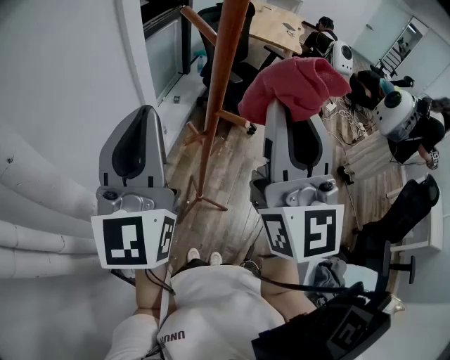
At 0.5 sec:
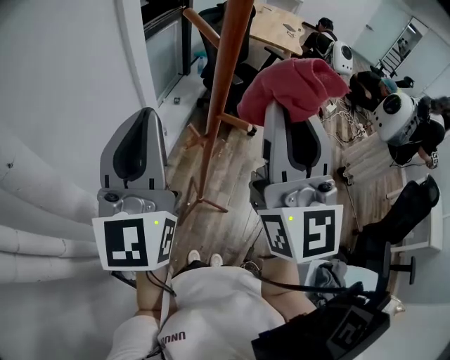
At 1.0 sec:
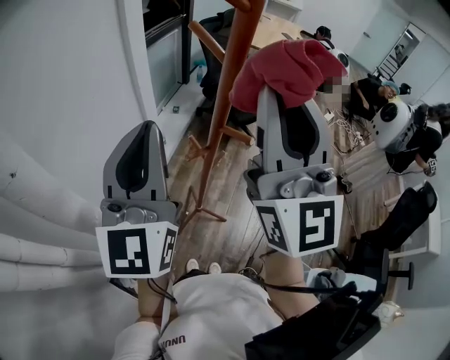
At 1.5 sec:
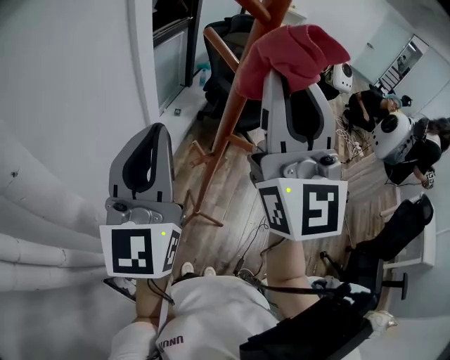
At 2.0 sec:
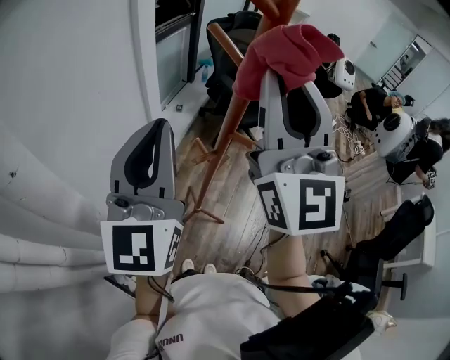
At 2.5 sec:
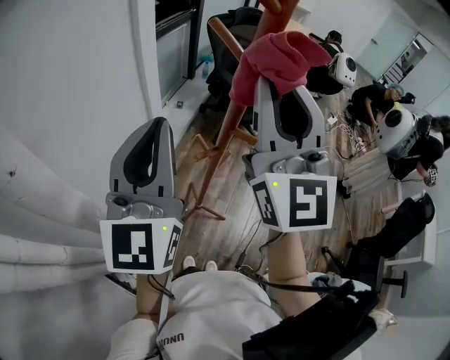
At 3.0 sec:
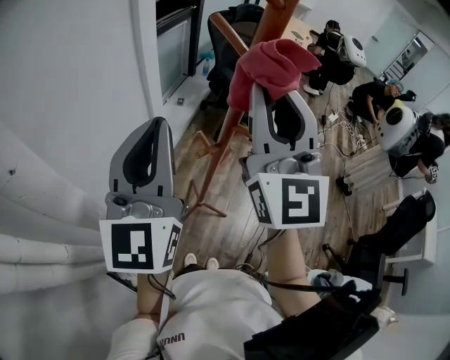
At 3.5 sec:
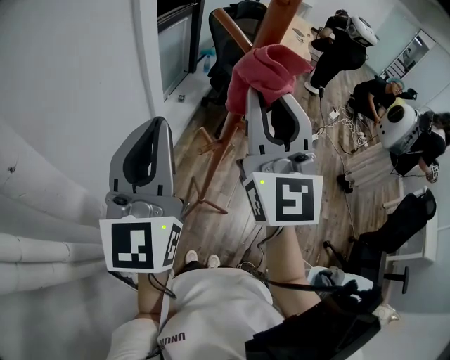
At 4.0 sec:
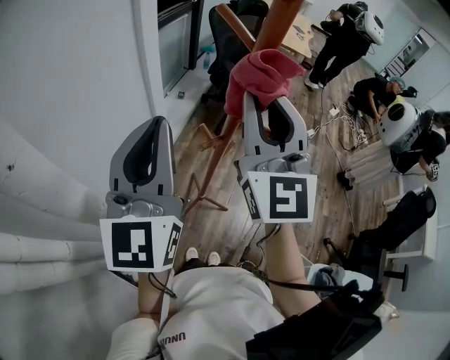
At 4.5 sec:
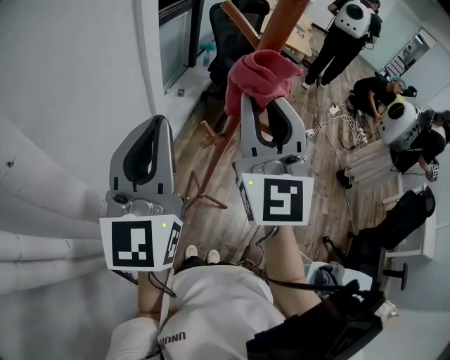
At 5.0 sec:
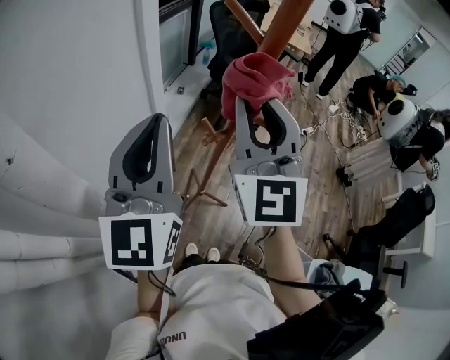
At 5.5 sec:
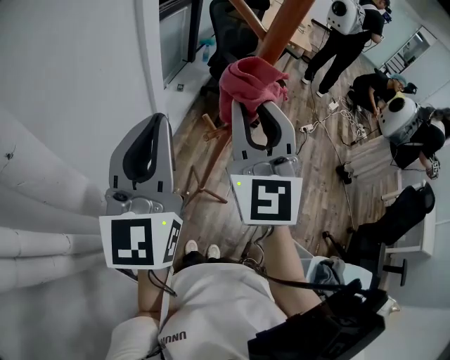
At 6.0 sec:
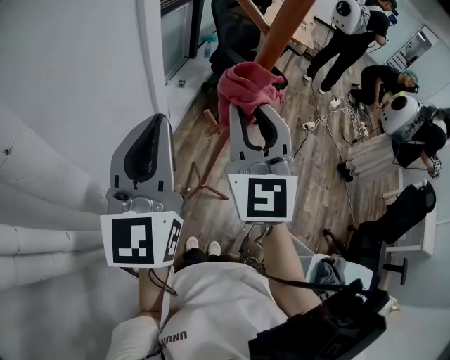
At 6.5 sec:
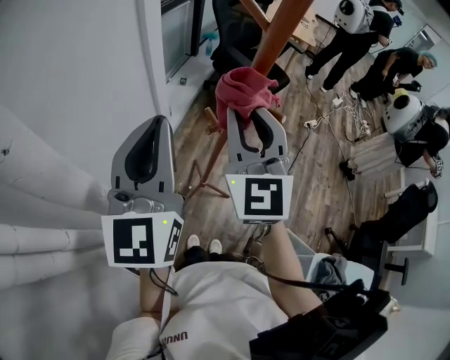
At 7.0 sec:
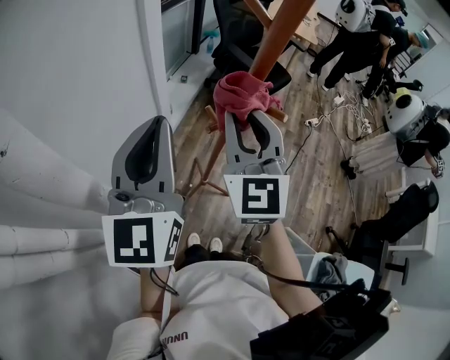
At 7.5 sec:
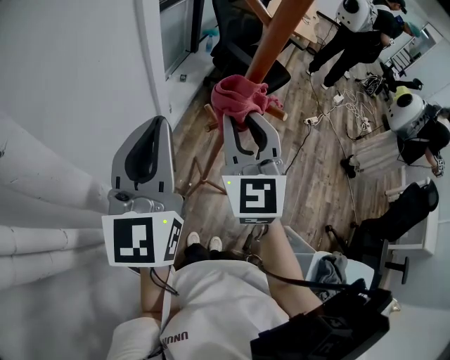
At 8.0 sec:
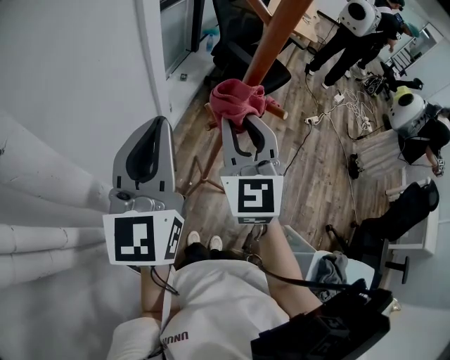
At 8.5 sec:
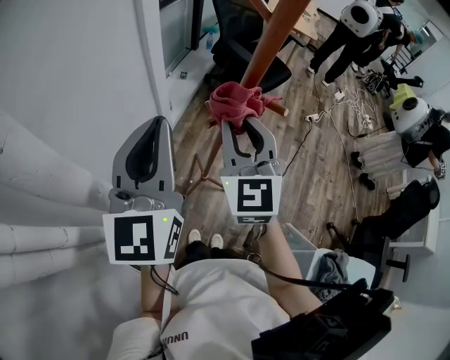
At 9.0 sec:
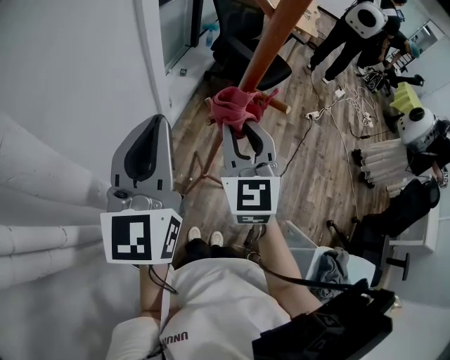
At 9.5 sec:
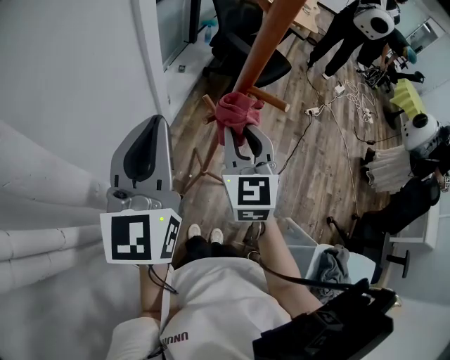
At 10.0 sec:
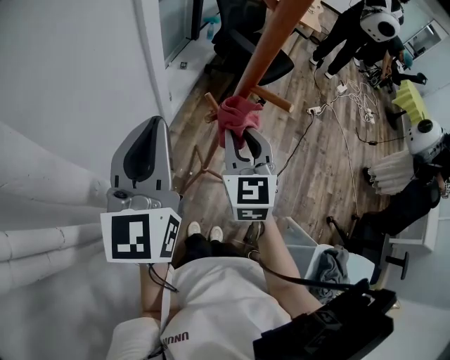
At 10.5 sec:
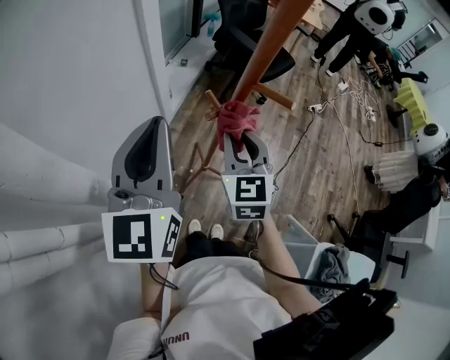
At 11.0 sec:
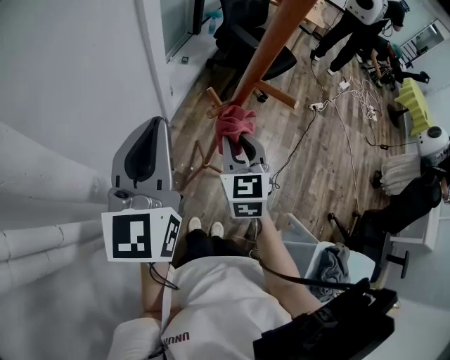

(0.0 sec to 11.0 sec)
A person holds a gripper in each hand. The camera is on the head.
0.0 sec - 2.0 sec: The right gripper heads forward, covering about 5 cm.
2.0 sec - 3.5 sec: The right gripper goes approximately 5 cm downward.
3.5 sec - 5.5 sec: The right gripper moves roughly 5 cm.
5.5 sec - 7.5 sec: The right gripper goes some 10 cm downward.
7.5 sec - 9.0 sec: The right gripper shifts some 5 cm downward.
9.0 sec - 11.0 sec: The right gripper moves downward, some 10 cm.

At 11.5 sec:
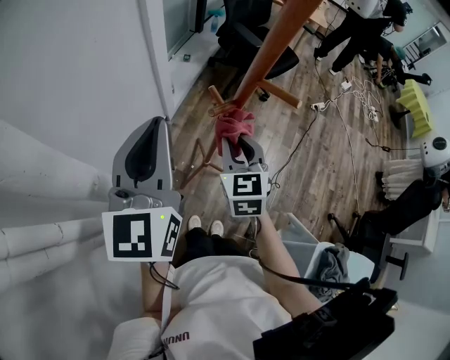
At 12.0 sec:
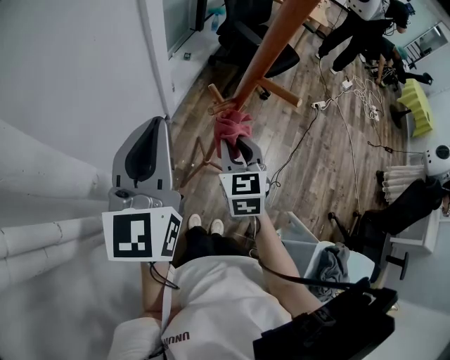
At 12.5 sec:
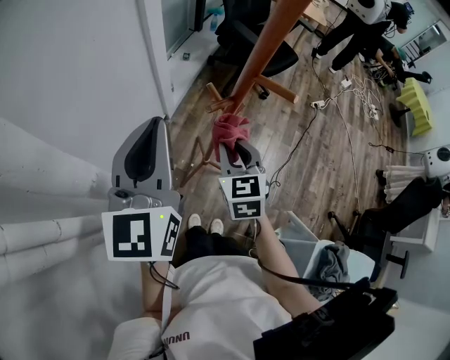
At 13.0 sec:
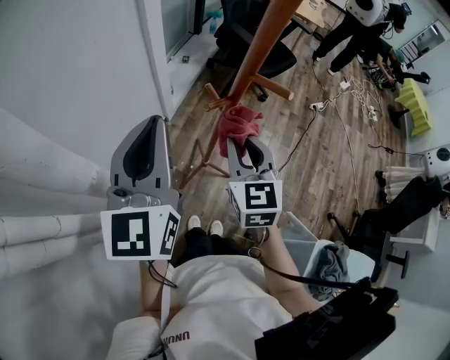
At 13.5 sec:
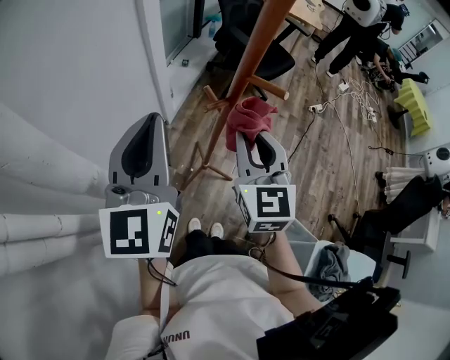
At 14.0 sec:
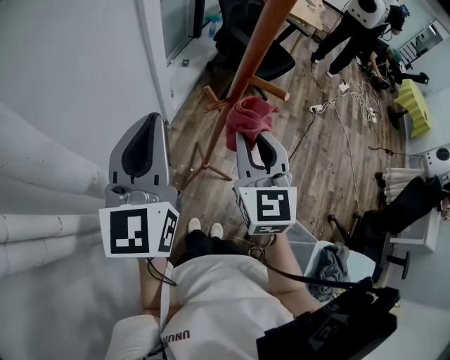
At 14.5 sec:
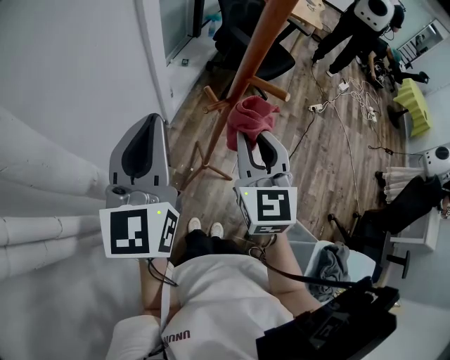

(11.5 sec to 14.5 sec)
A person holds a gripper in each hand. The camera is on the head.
11.5 sec - 13.0 sec: The right gripper changes place by some 5 cm.
13.0 sec - 14.5 sec: The right gripper moves upward, approximately 5 cm.

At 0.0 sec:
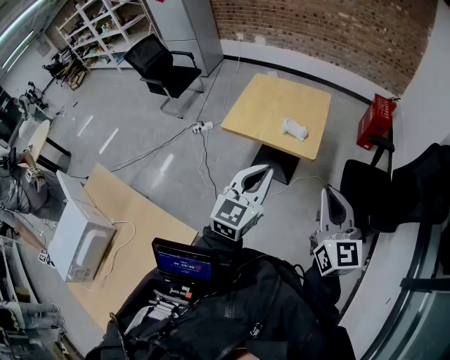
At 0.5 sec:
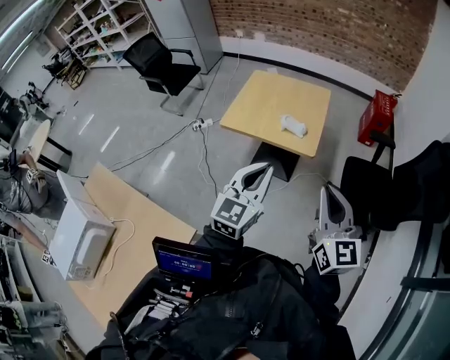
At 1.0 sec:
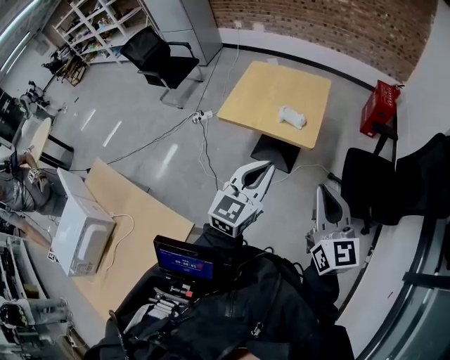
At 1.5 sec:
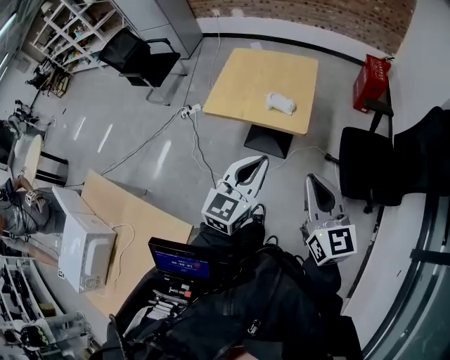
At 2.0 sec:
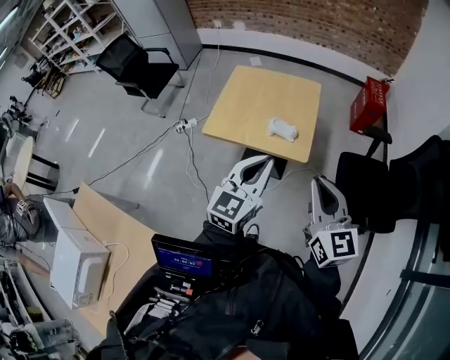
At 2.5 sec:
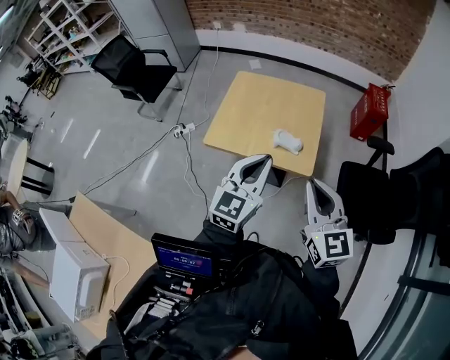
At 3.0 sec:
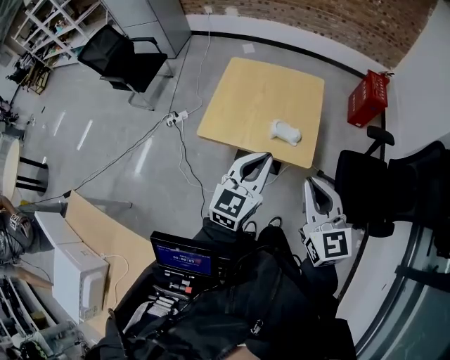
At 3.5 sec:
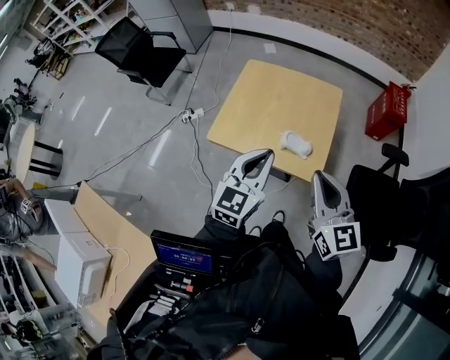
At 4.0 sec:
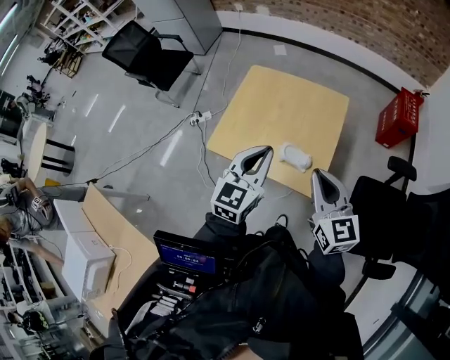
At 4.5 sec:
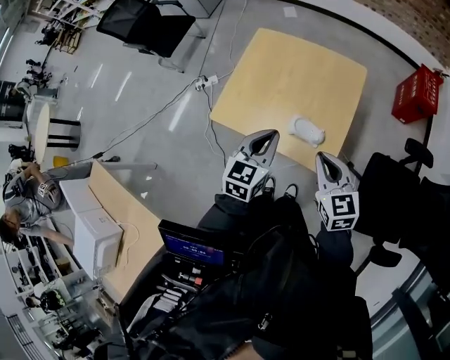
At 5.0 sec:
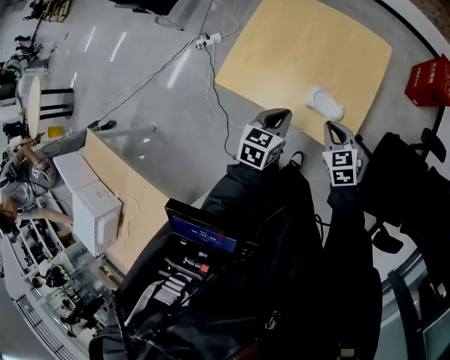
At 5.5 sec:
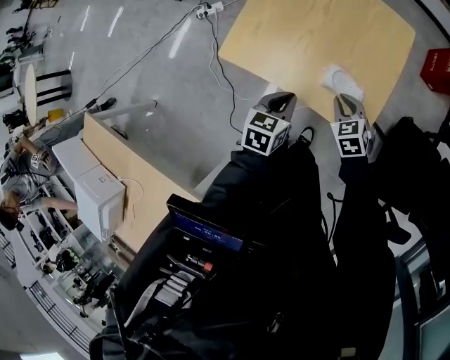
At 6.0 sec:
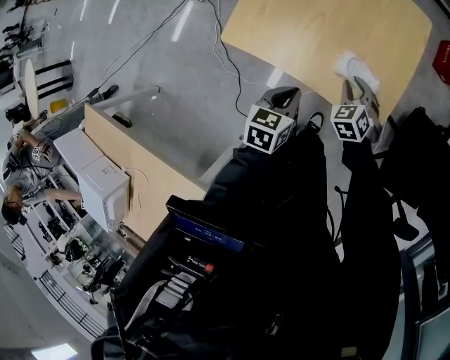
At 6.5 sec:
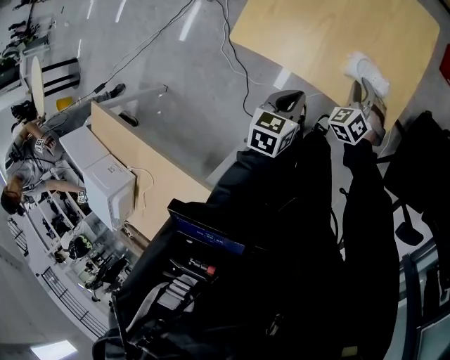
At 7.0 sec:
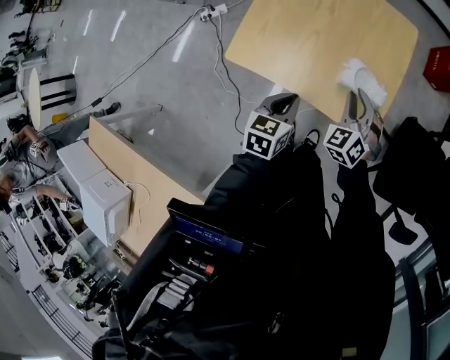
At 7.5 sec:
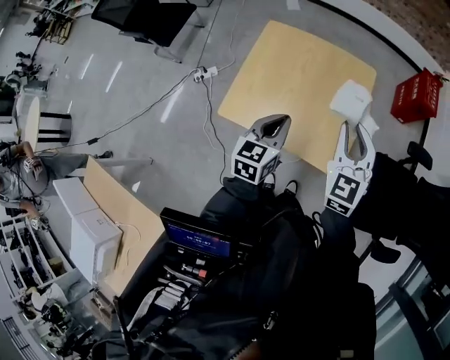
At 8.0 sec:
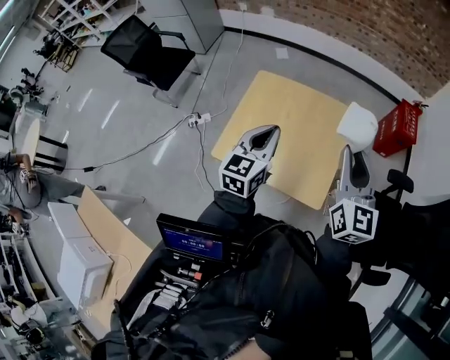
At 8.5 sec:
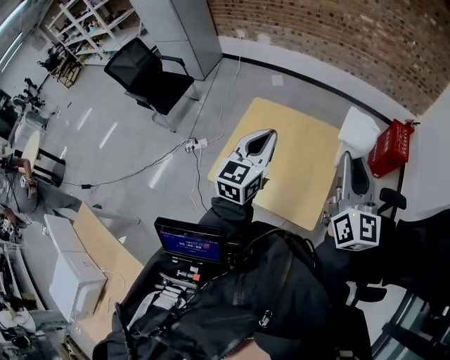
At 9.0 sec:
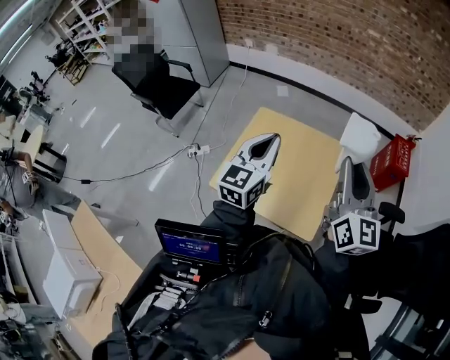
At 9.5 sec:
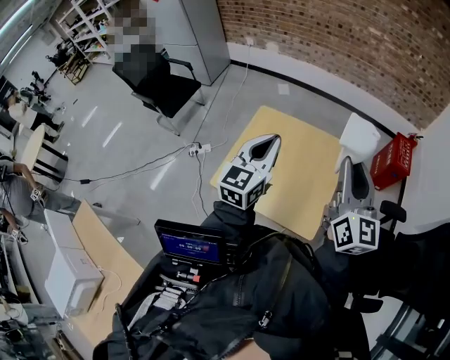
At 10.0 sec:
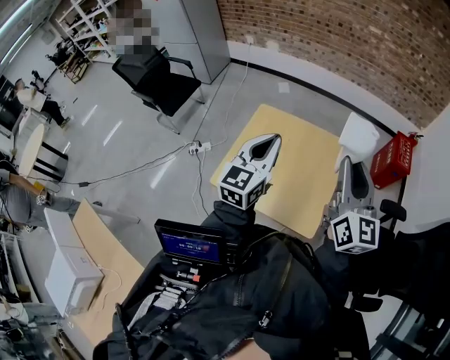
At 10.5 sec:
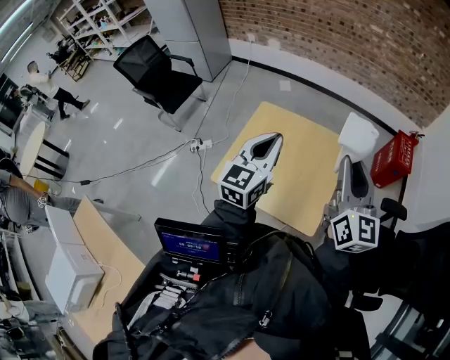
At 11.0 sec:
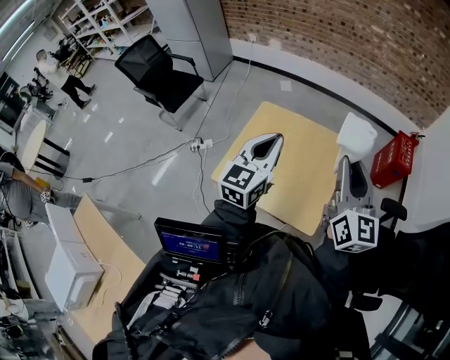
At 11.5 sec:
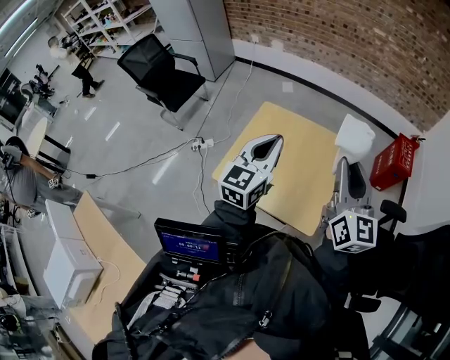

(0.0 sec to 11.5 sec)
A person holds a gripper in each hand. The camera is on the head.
0.0 sec - 2.0 sec: The two grippers go about 15 cm forward.
2.0 sec - 4.0 sec: The two grippers go roughly 25 cm forward.
4.0 sec - 6.0 sec: Both grippers travel together downward, roughly 35 cm. The right gripper tilts its fingers about 40 degrees downward, and opens its fingers; the left gripper angles its fingers downward, by approximately 30 degrees.
6.0 sec - 7.5 sec: The right gripper travels upward by some 35 cm, and angles its fingers upward, by some 40 degrees; the left gripper travels upward and forward by about 20 cm, and rotates roughly 20 degrees.
7.5 sec - 9.5 sec: The two grippers go roughly 20 cm upward. The left gripper turns by roughly 20 degrees, while the right gripper swivels some 40 degrees.
9.5 sec - 11.5 sec: The grippers make only small movements.

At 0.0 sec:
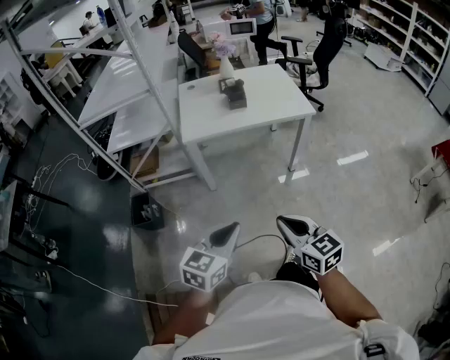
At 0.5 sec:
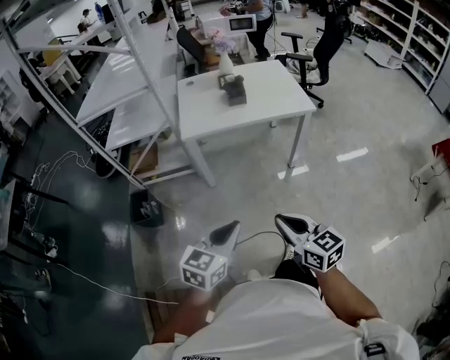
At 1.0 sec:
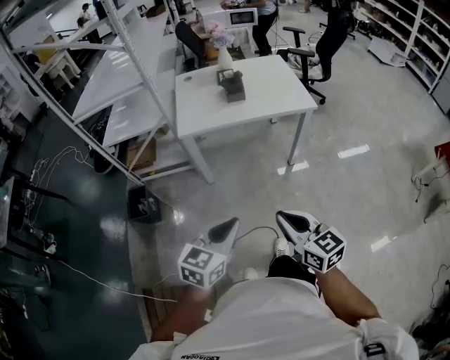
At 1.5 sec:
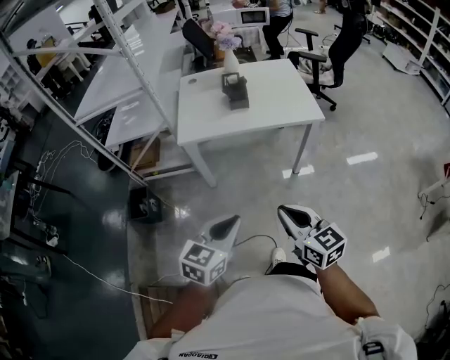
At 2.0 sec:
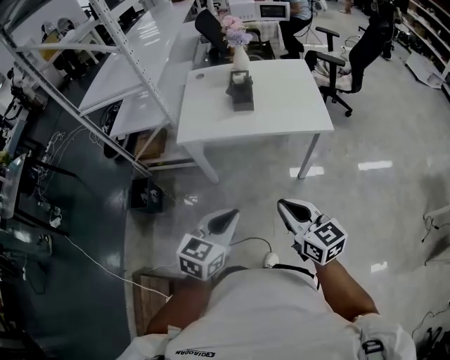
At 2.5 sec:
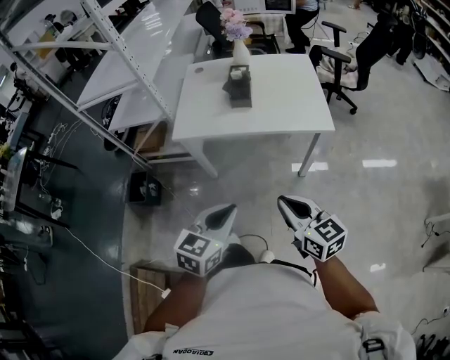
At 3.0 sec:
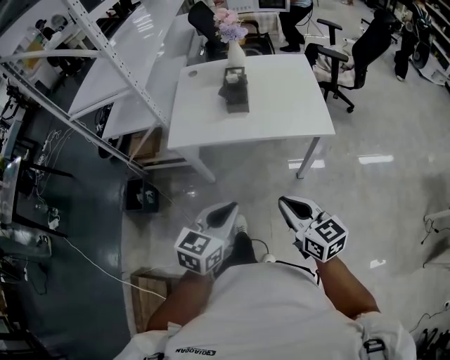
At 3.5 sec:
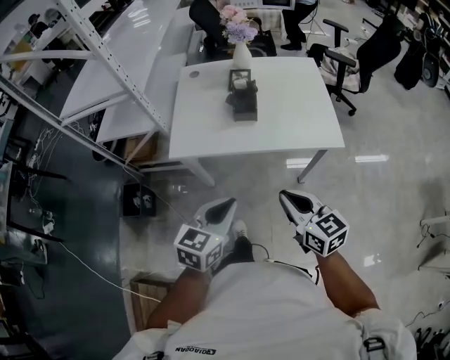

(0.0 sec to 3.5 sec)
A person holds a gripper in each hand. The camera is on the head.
0.0 sec - 2.0 sec: The two grippers go some 25 cm forward and to the right.
2.0 sec - 3.5 sec: The grippers both shift forward by approximately 15 cm.
